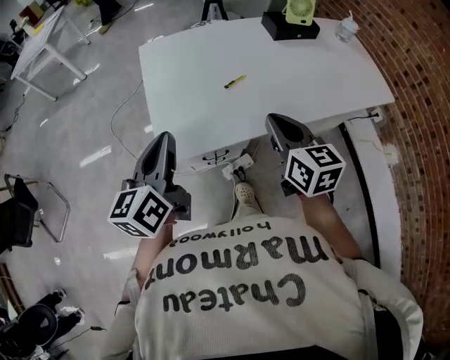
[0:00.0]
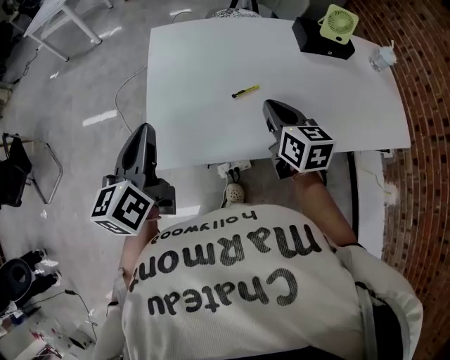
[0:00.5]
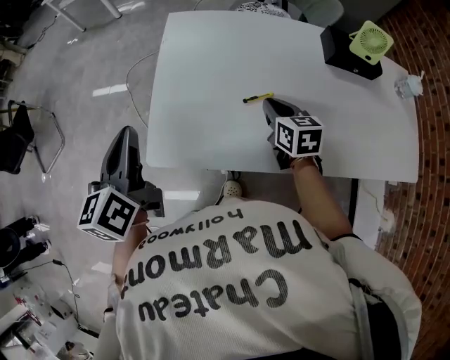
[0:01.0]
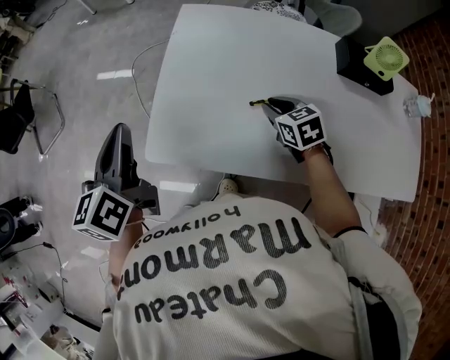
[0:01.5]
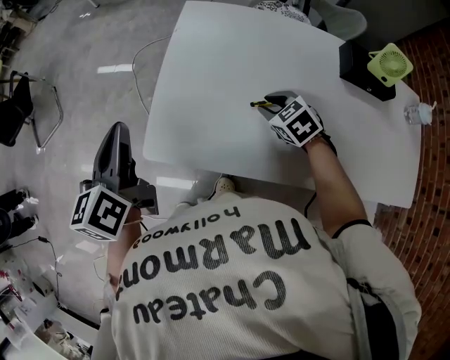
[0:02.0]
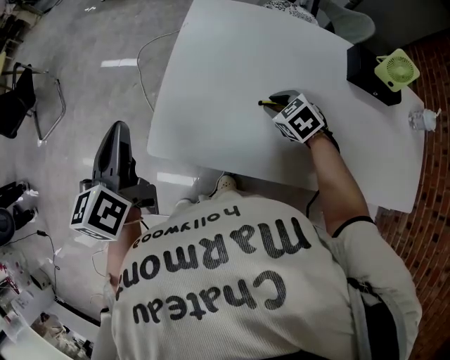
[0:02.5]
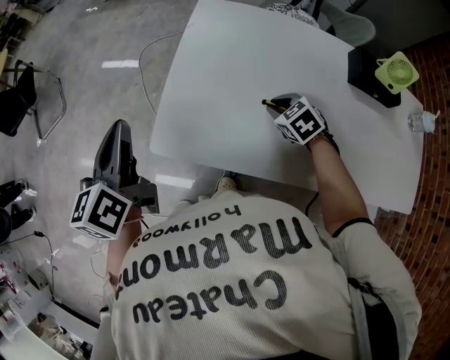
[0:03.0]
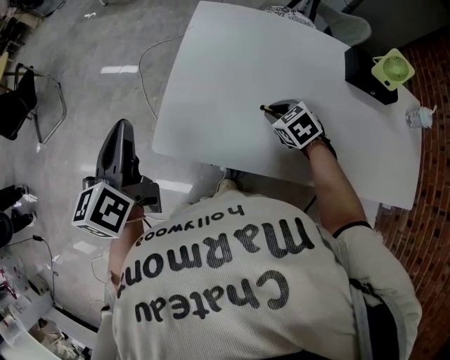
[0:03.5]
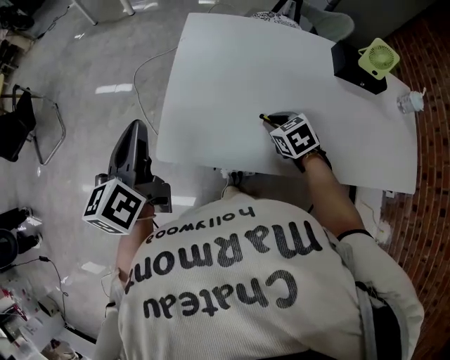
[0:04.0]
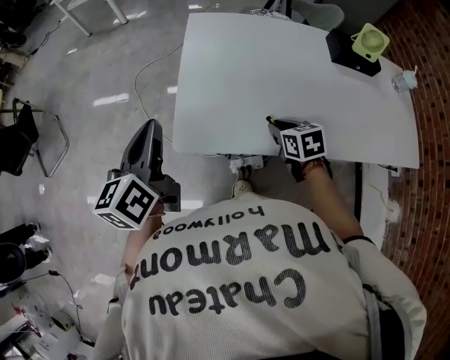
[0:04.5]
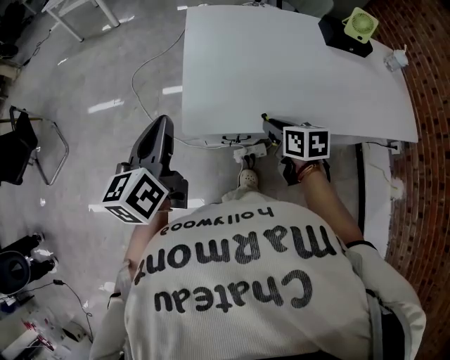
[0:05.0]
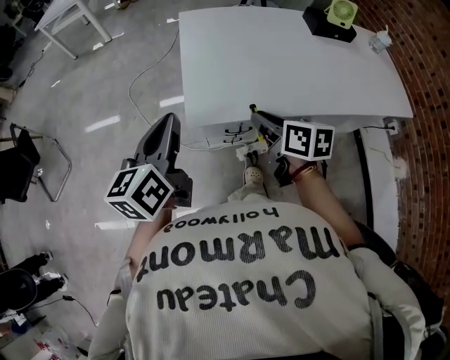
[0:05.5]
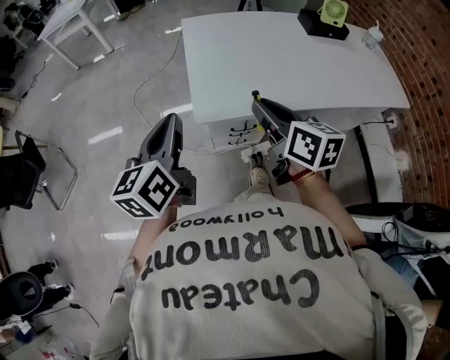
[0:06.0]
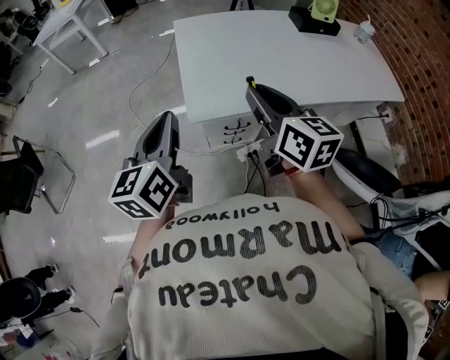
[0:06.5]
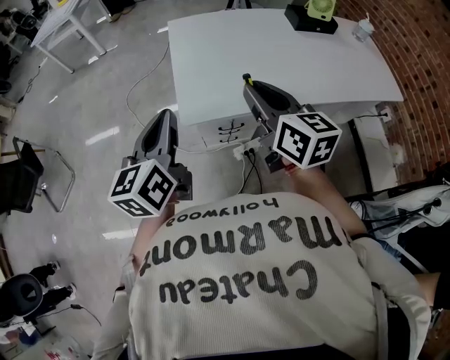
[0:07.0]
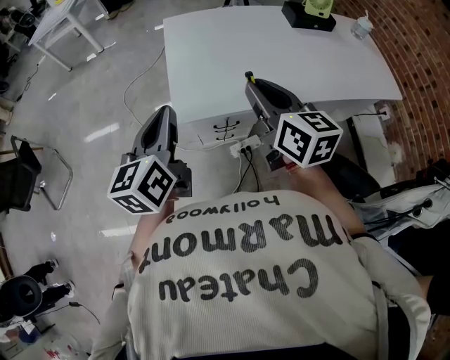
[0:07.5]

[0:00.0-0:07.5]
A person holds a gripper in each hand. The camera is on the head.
0:00.0 to 0:02.0: The right gripper moves approximately 30 cm, tilts its fingers some 40 degrees downward, and opens its fingers; the left gripper moves approximately 10 cm, and turns by some 40 degrees.
0:02.0 to 0:04.0: The right gripper moves roughly 5 cm.
0:04.0 to 0:05.5: The right gripper heads to the left, backward and upward, covering about 25 cm, and twists approximately 50 degrees clockwise, seen from behind. Meanwhile the left gripper travels backward and to the left by roughly 10 cm, and turns by some 20 degrees.
0:05.5 to 0:07.5: The right gripper is displaced upward by about 15 cm, and rotates approximately 30 degrees. The left gripper ends up some 5 cm from where it was.

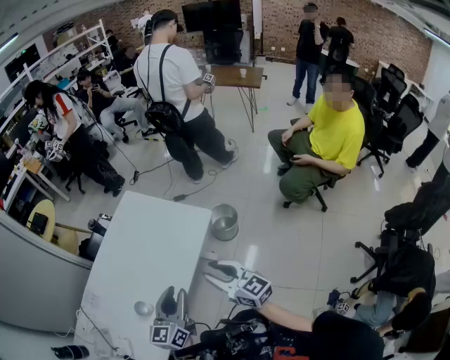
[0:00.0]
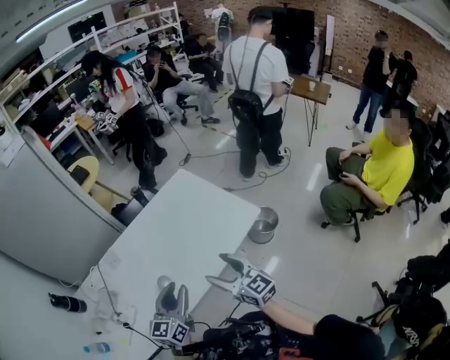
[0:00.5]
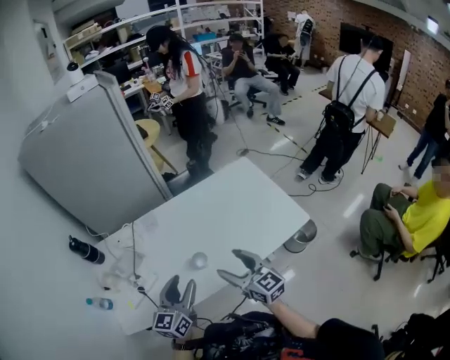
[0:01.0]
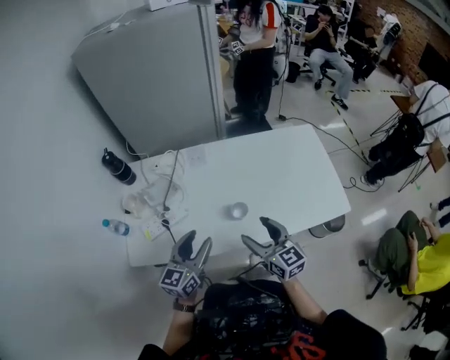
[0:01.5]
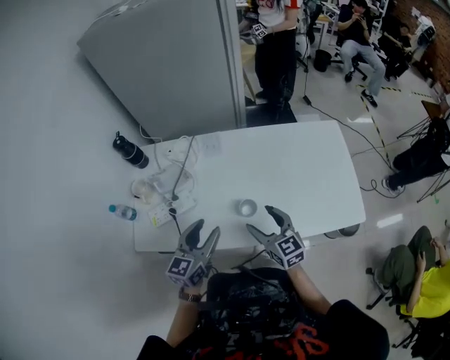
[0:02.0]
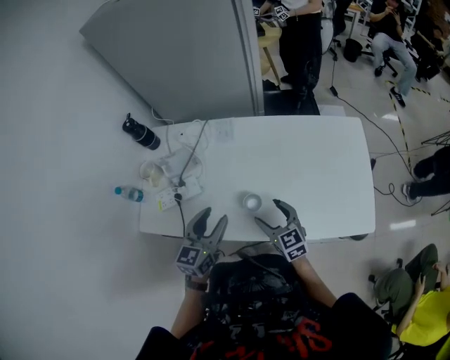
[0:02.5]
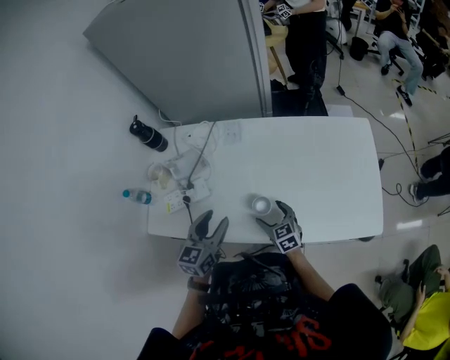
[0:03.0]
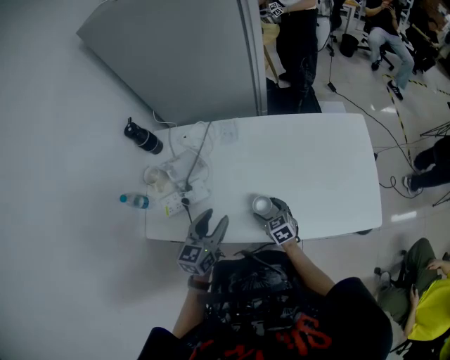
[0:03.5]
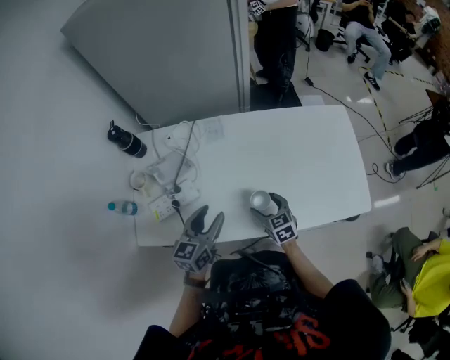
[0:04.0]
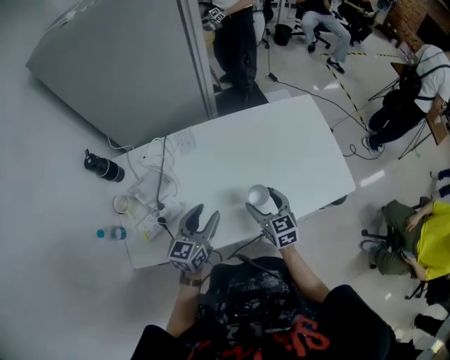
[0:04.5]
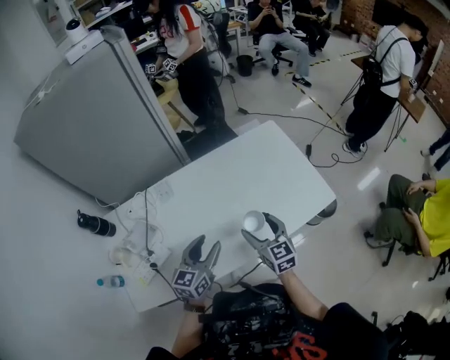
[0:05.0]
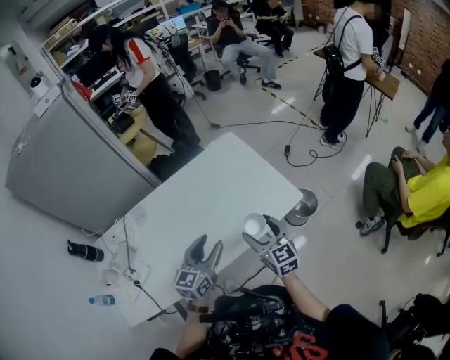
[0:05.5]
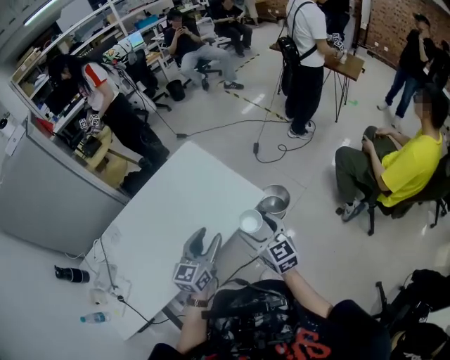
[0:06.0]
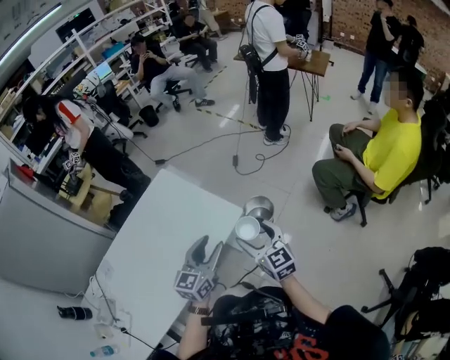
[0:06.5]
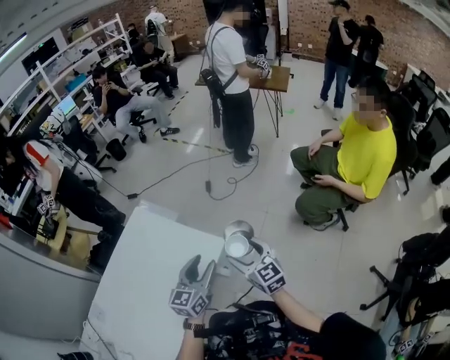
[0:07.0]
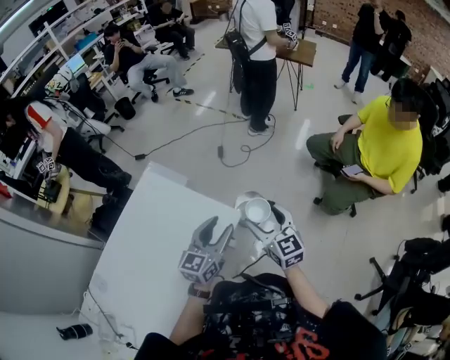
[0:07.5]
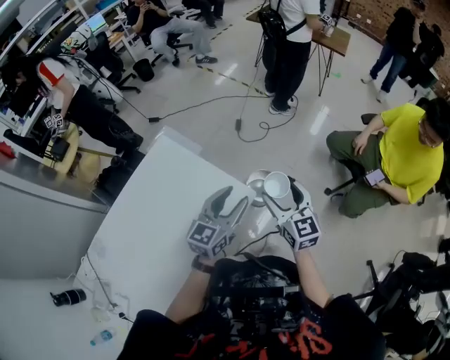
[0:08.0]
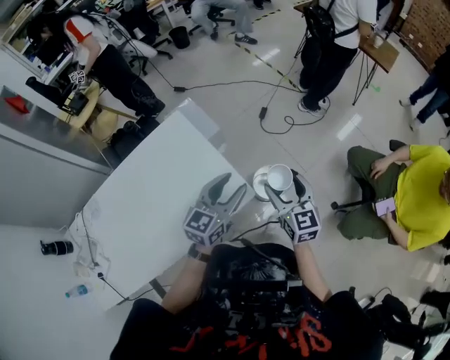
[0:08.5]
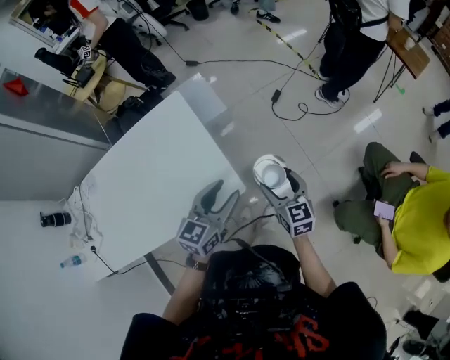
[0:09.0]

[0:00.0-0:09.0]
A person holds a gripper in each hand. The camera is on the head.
0:00.0 to 0:02.0: The left gripper moves about 30 cm, and turns by approximately 50 degrees. The right gripper ends up some 35 cm from where it was, turns by roughly 50 degrees, and opens up.
0:02.0 to 0:04.5: The right gripper travels downward and back again, about 20 cm each way, and changes its angle by approximately 20 degrees; the left gripper is displaced forward by some 5 cm.
0:04.5 to 0:07.0: The two grippers travel together, roughly 50 cm. The right gripper swivels roughly 40 degrees. The left gripper turns by roughly 50 degrees.
0:07.0 to 0:09.0: The left gripper moves approximately 15 cm, and changes its angle by roughly 20 degrees, while the right gripper ends up about 25 cm from where it was, and swivels about 20 degrees.

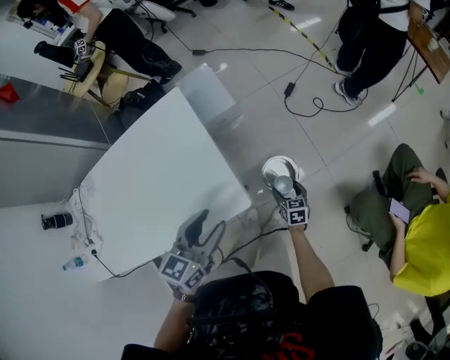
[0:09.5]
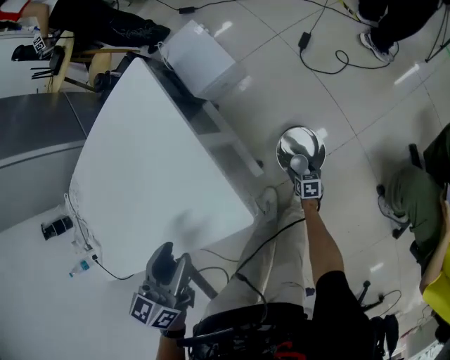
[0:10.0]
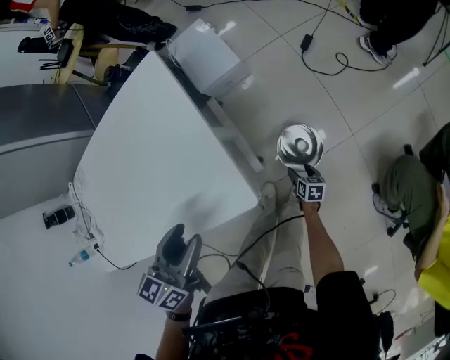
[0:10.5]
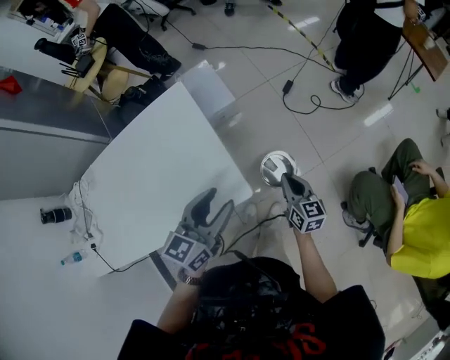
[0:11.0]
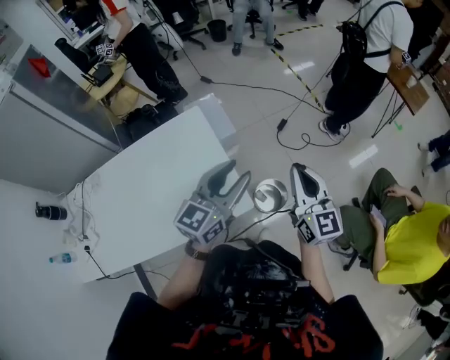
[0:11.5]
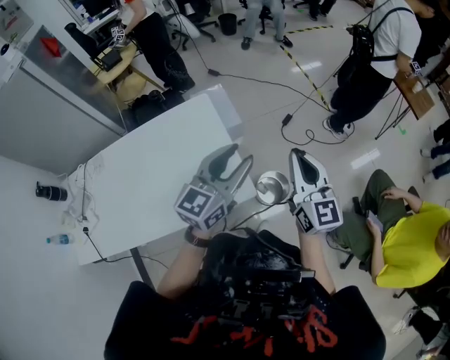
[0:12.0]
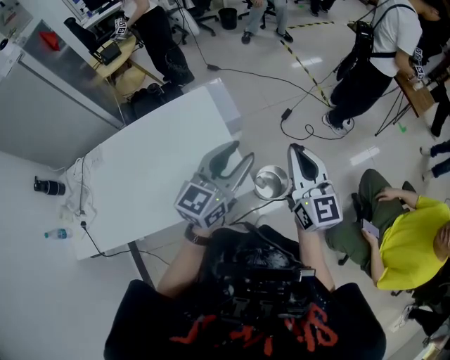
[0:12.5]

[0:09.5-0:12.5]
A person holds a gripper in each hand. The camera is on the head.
0:09.5 to 0:11.0: The left gripper goes downward and returns, roughly 10 cm each way; the right gripper moves upward, approximately 20 cm, changes its angle by some 30 degrees, and closes its fingers.
0:11.0 to 0:12.5: The left gripper shifts some 15 cm upward, while the right gripper goes about 30 cm upward, and changes its angle by about 30 degrees.

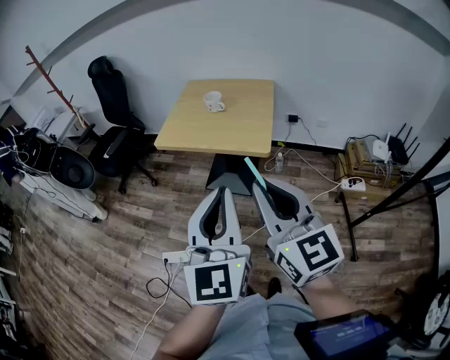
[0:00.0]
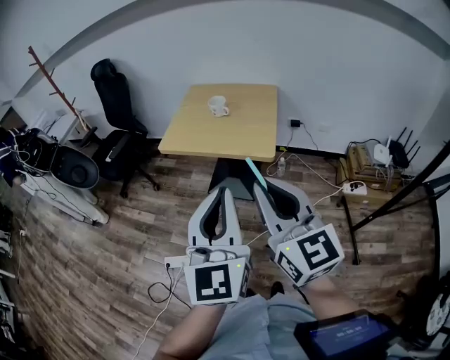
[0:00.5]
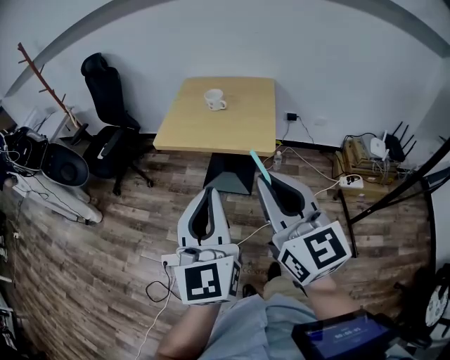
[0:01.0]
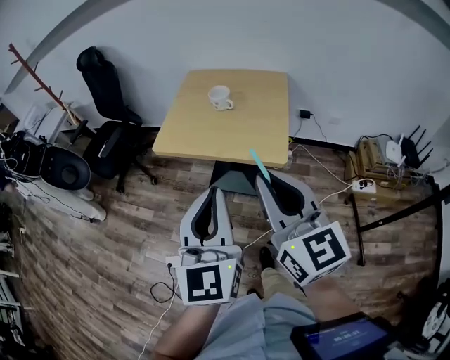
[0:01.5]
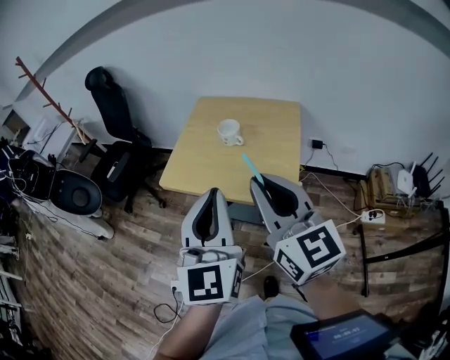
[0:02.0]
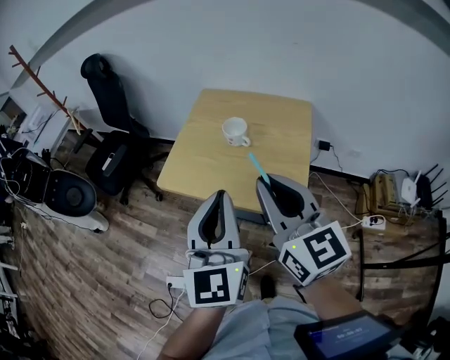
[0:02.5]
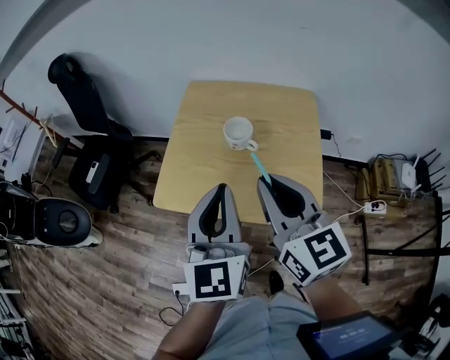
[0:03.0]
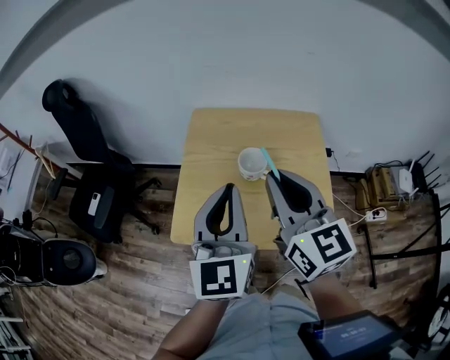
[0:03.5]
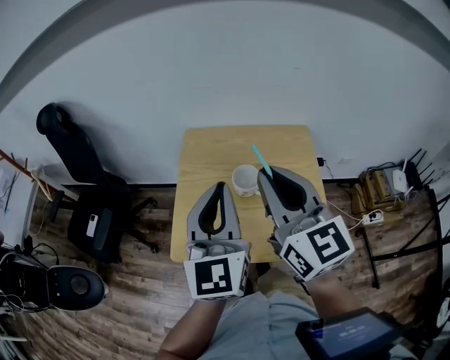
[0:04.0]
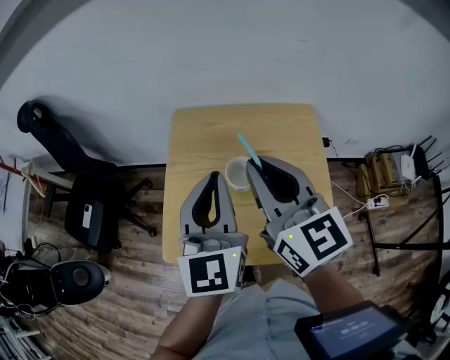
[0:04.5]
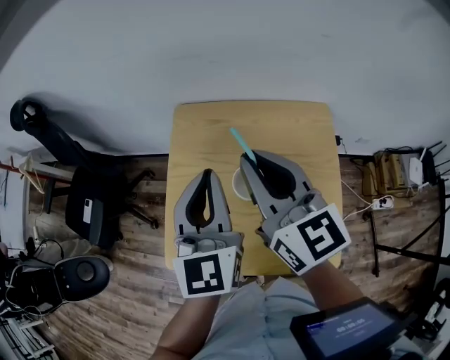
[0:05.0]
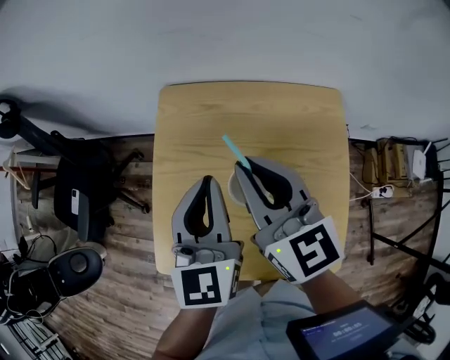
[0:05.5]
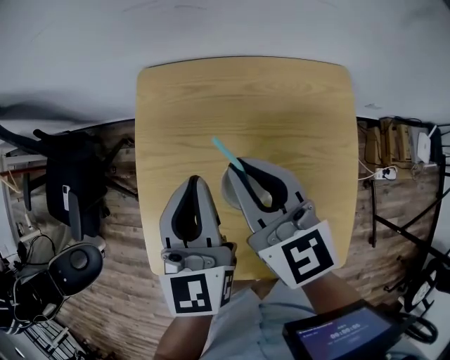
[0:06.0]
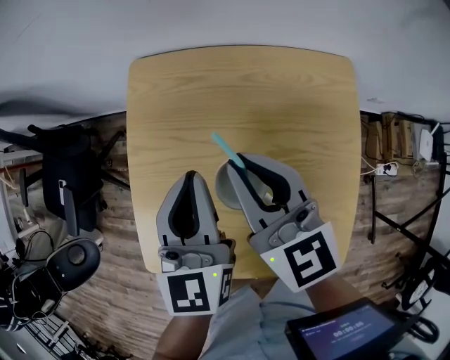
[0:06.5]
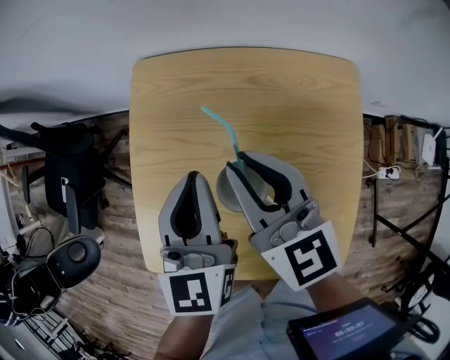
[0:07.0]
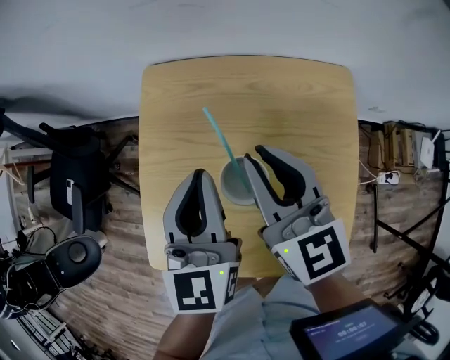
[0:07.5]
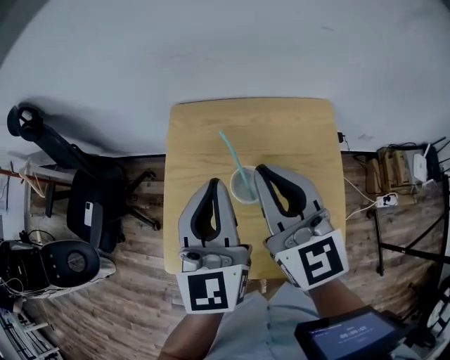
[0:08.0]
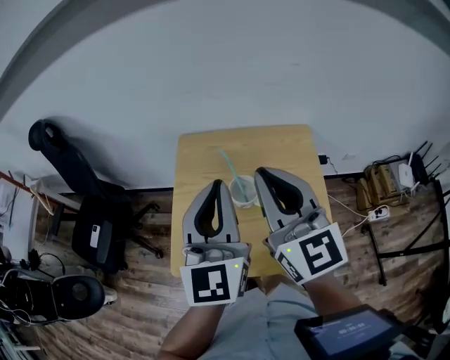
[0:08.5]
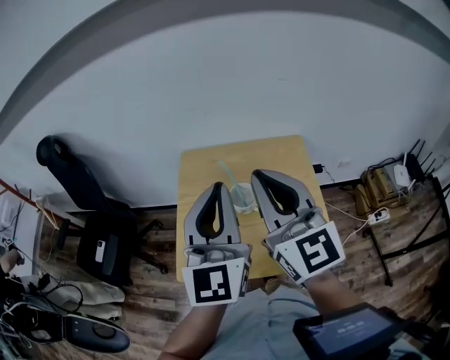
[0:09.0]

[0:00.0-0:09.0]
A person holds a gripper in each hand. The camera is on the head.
0:00.0 to 0:02.0: The grippers both shift forward by about 25 cm.
0:02.0 to 0:04.5: Both grippers travel together forward, some 35 cm.
0:04.5 to 0:07.0: Both grippers travel together downward and forward, roughly 20 cm.
0:07.0 to 0:09.0: Both grippers move upward and backward, roughly 30 cm. The left gripper changes its angle by roughly 30 degrees. The right gripper rotates some 30 degrees.
